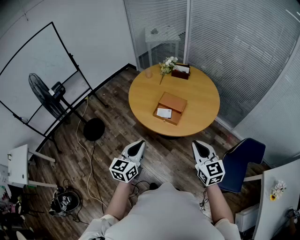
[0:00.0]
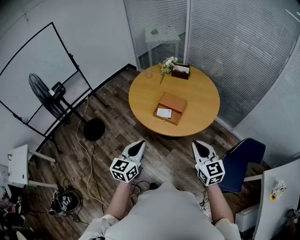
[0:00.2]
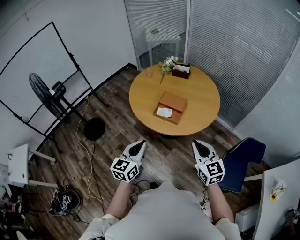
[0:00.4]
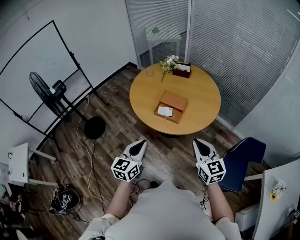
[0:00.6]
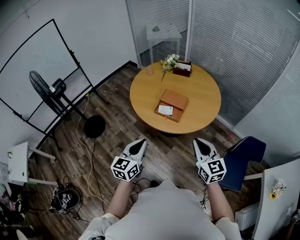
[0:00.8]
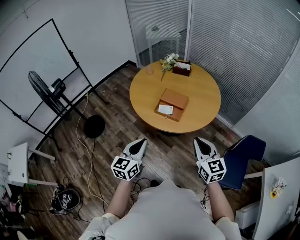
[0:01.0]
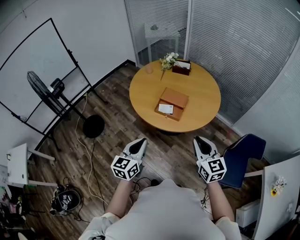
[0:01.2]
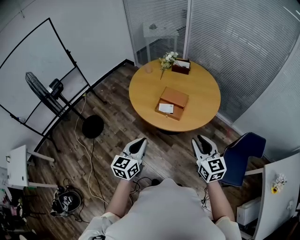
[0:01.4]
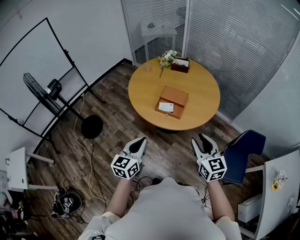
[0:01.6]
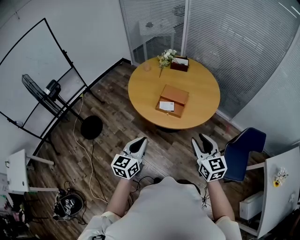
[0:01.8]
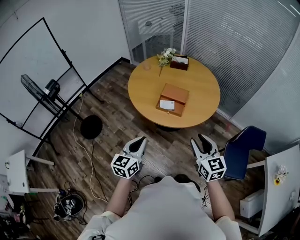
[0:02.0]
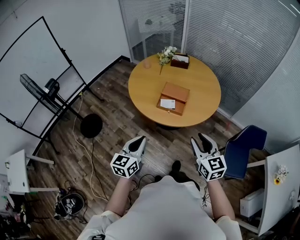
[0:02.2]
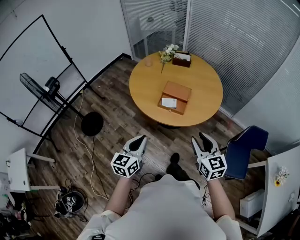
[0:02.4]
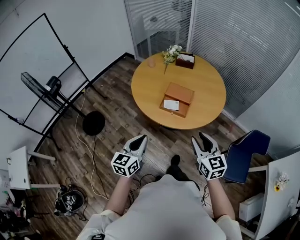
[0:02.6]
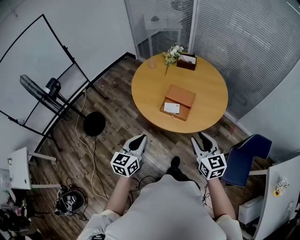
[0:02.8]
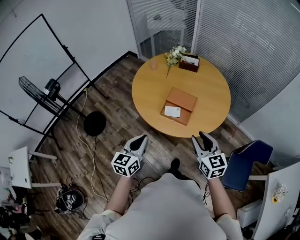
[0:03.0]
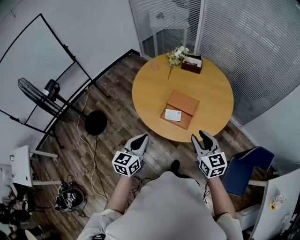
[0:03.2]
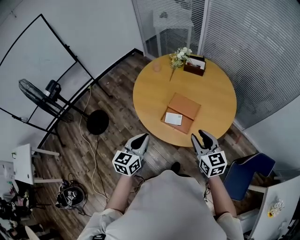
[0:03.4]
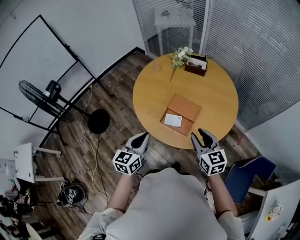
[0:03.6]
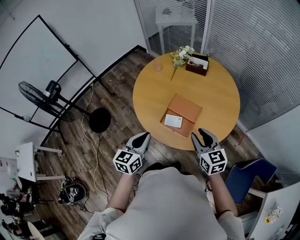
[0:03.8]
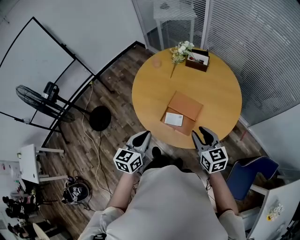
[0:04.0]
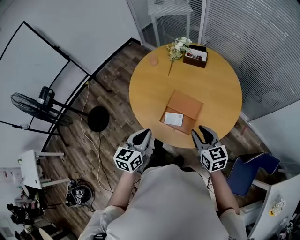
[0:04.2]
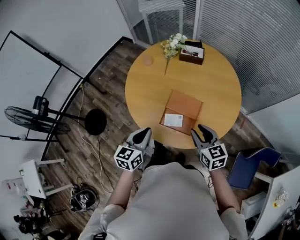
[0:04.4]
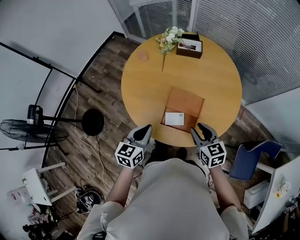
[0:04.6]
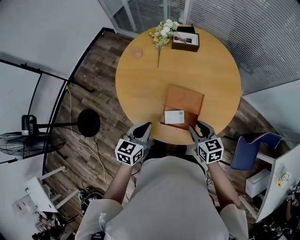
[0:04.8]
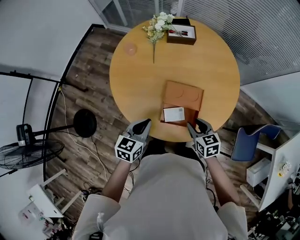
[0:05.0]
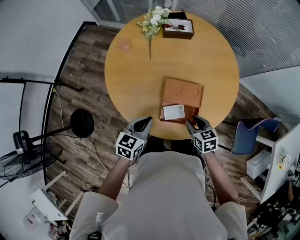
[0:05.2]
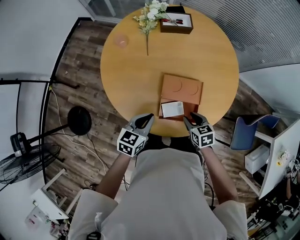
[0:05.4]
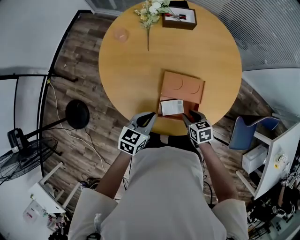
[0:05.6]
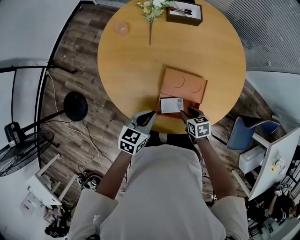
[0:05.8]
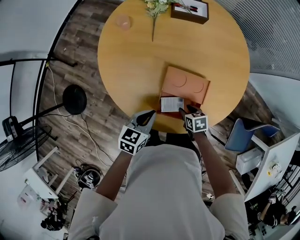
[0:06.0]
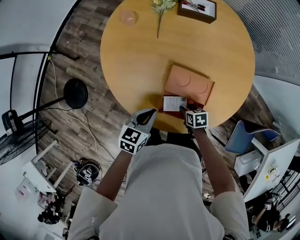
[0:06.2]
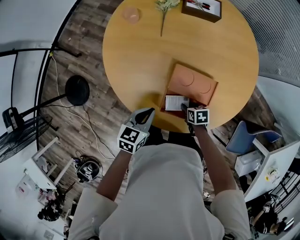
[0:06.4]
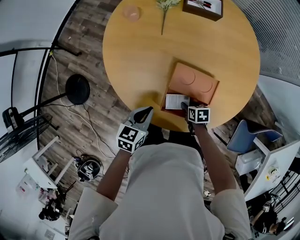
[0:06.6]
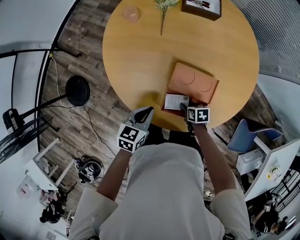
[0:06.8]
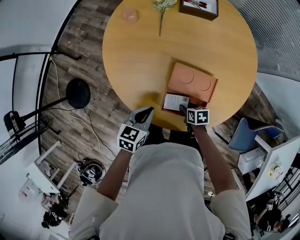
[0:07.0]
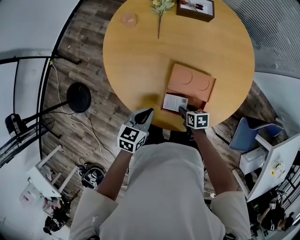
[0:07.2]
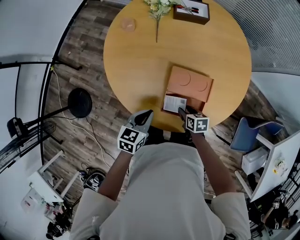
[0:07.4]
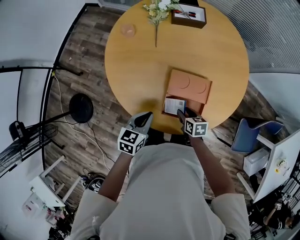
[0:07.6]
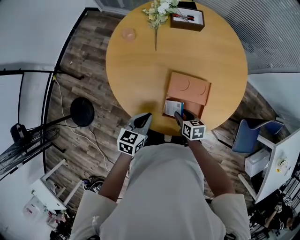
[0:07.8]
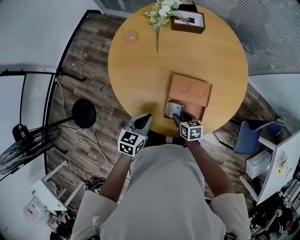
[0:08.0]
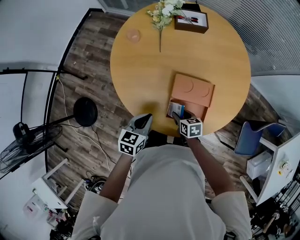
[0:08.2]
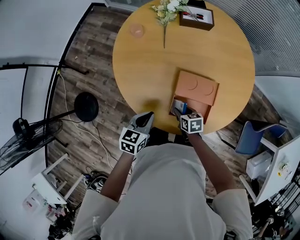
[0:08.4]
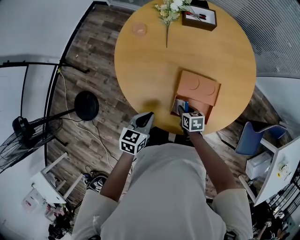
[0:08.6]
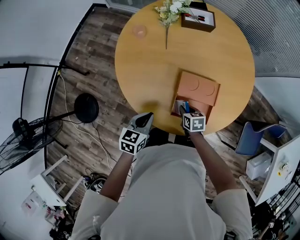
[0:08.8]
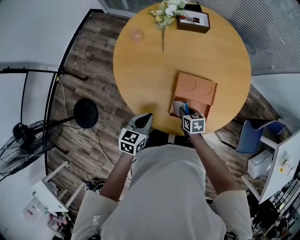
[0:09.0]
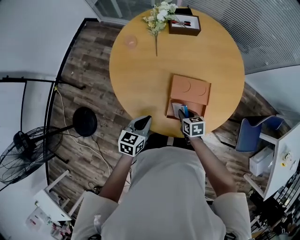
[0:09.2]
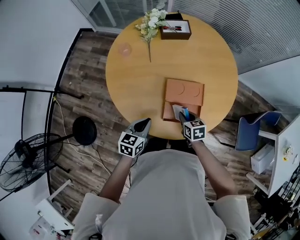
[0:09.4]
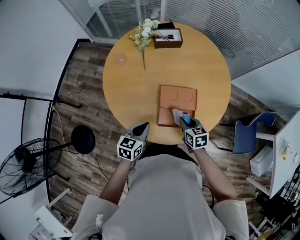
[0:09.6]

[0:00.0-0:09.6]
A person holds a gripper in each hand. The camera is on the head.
0:00.0 to 0:01.6: The left gripper shifts by approximately 5 cm. The right gripper opens.
0:01.6 to 0:03.2: The two grippers go roughly 20 cm forward.
0:03.2 to 0:04.8: The grippers both shift forward and downward by approximately 30 cm. The left gripper rotates some 20 degrees; the right gripper turns by about 20 degrees.
0:04.8 to 0:06.4: The left gripper goes approximately 15 cm downward; the right gripper is displaced downward by about 30 cm, and turns by some 40 degrees.
0:06.4 to 0:08.0: The left gripper changes place by about 5 cm. The right gripper goes roughly 10 cm upward and to the left.
0:08.0 to 0:09.6: The right gripper heads upward, covering about 10 cm, and closes its fingers.

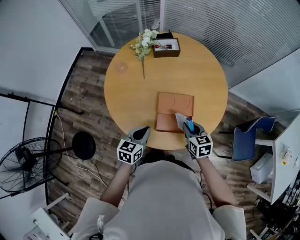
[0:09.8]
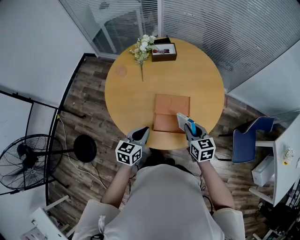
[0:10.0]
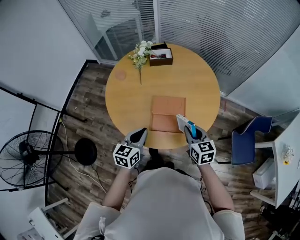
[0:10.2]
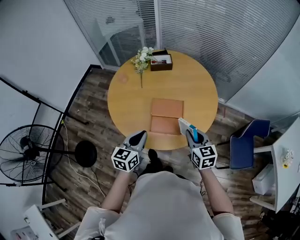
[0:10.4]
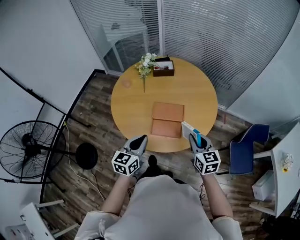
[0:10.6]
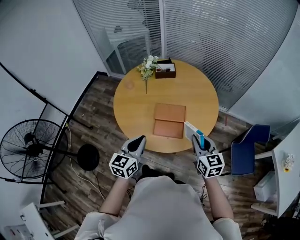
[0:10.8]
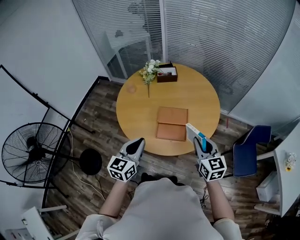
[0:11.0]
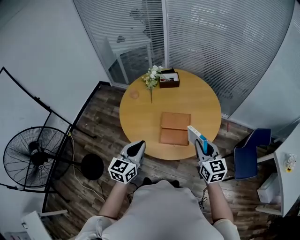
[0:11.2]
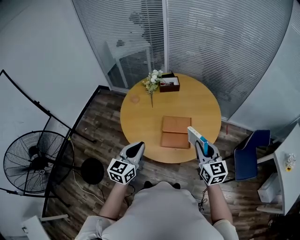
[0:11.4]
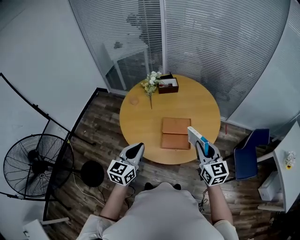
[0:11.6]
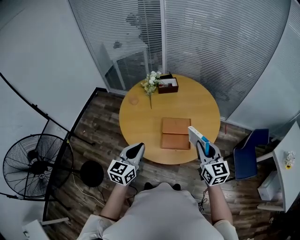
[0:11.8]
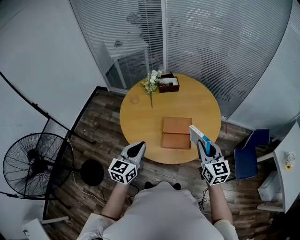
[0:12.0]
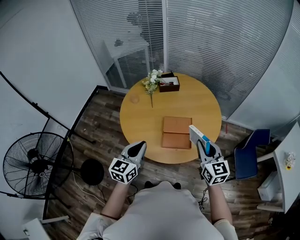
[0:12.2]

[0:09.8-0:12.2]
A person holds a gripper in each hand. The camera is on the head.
0:09.8 to 0:11.0: The right gripper is displaced upward, backward and to the right by approximately 30 cm, and rotates approximately 20 degrees; the left gripper shifts some 25 cm upward and backward, and turns by about 20 degrees.
0:11.0 to 0:12.2: The left gripper travels to the left by some 5 cm; the right gripper shifts by some 5 cm.

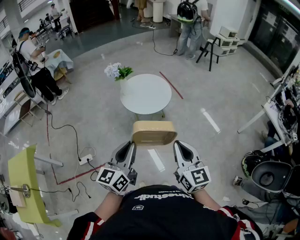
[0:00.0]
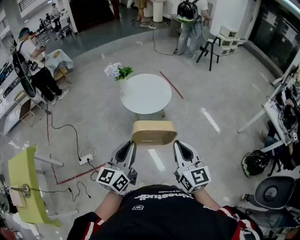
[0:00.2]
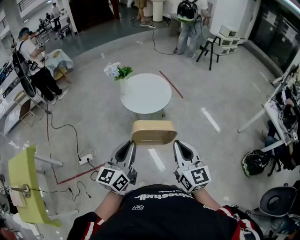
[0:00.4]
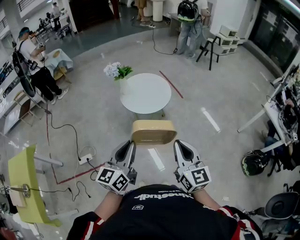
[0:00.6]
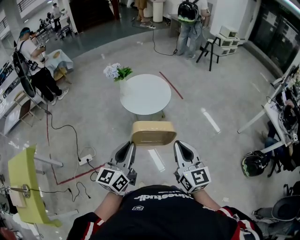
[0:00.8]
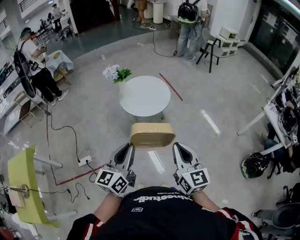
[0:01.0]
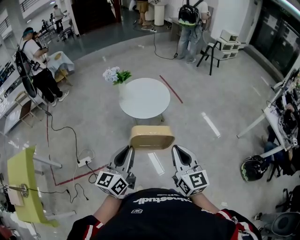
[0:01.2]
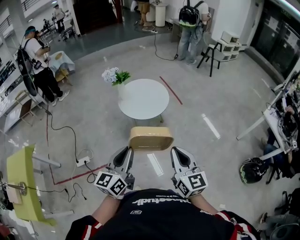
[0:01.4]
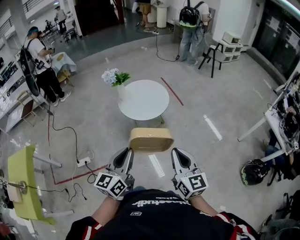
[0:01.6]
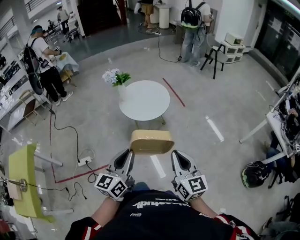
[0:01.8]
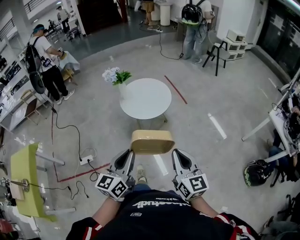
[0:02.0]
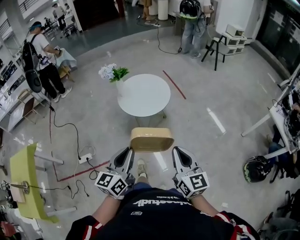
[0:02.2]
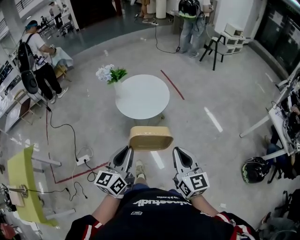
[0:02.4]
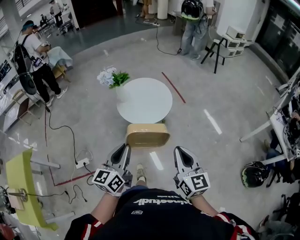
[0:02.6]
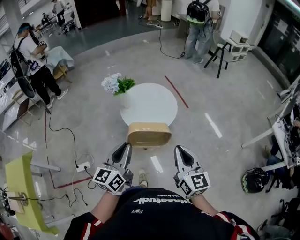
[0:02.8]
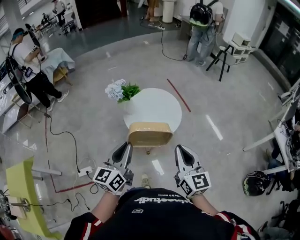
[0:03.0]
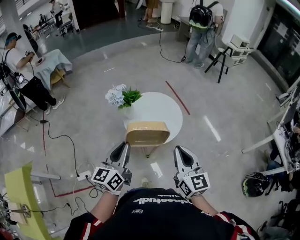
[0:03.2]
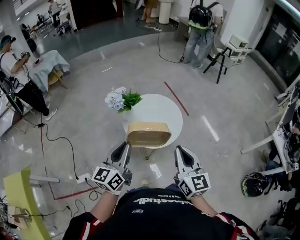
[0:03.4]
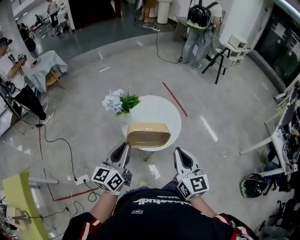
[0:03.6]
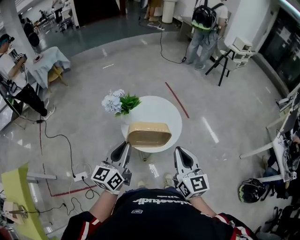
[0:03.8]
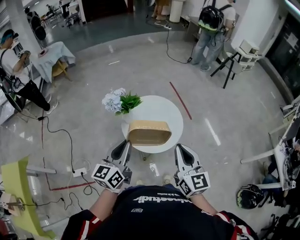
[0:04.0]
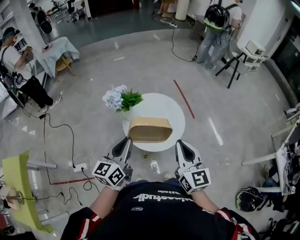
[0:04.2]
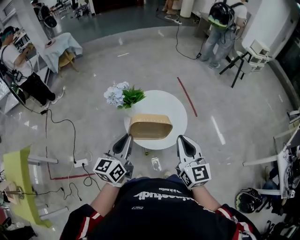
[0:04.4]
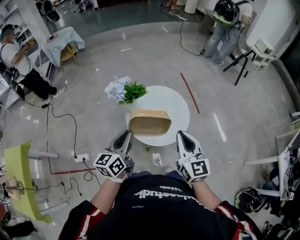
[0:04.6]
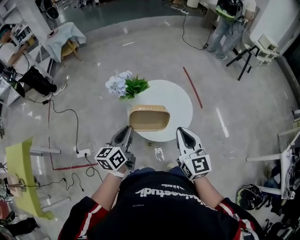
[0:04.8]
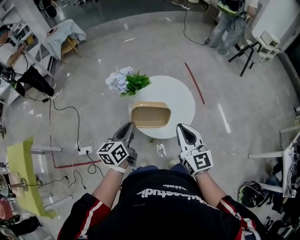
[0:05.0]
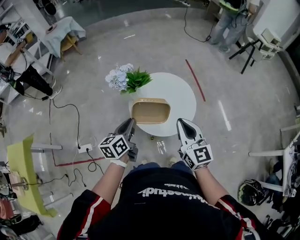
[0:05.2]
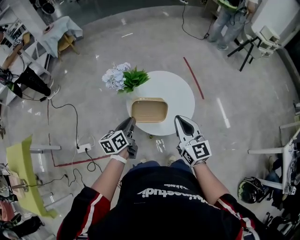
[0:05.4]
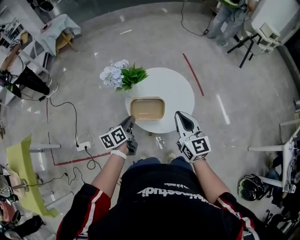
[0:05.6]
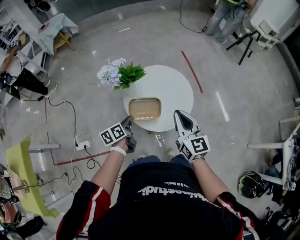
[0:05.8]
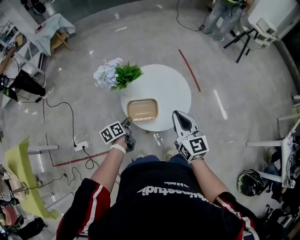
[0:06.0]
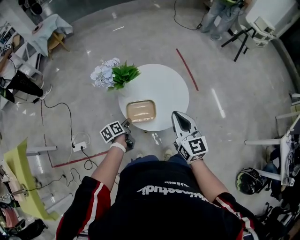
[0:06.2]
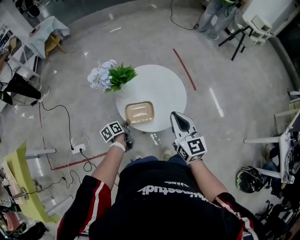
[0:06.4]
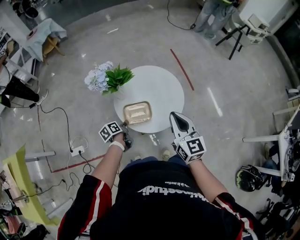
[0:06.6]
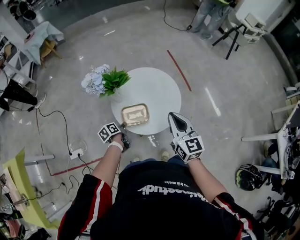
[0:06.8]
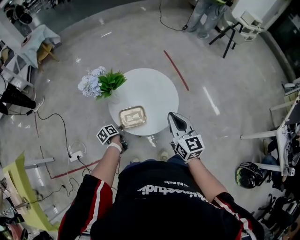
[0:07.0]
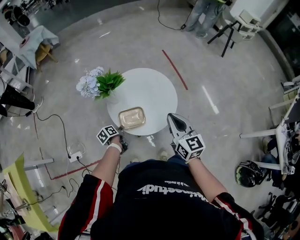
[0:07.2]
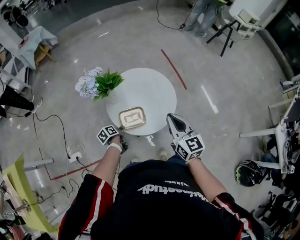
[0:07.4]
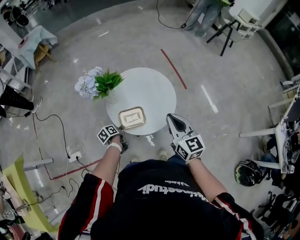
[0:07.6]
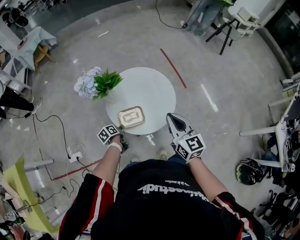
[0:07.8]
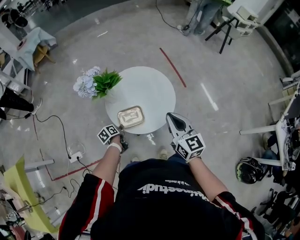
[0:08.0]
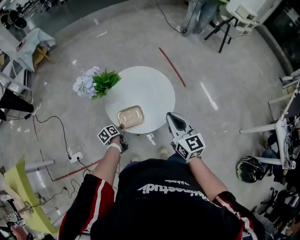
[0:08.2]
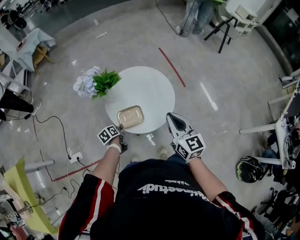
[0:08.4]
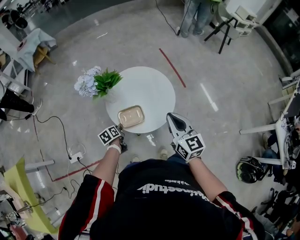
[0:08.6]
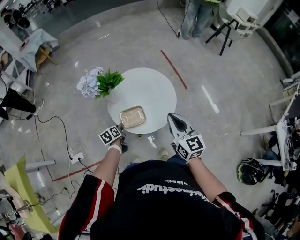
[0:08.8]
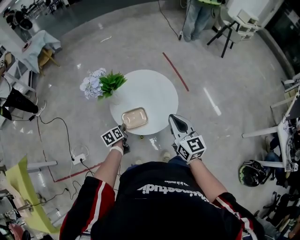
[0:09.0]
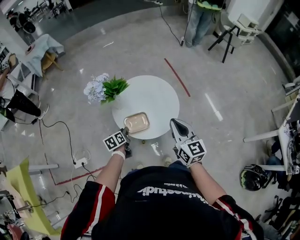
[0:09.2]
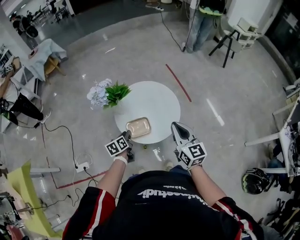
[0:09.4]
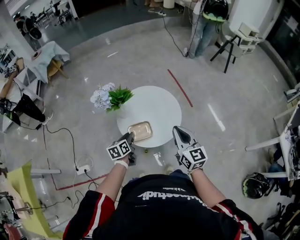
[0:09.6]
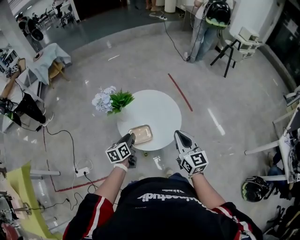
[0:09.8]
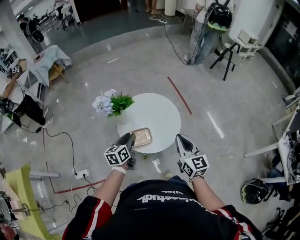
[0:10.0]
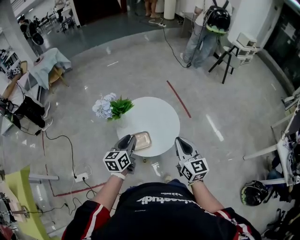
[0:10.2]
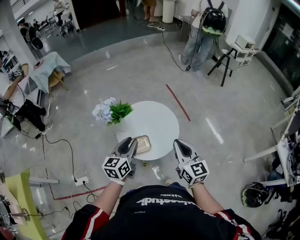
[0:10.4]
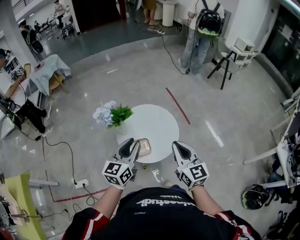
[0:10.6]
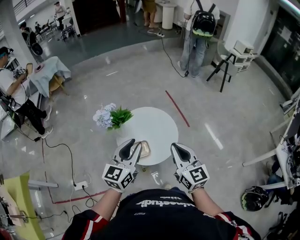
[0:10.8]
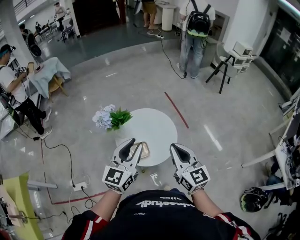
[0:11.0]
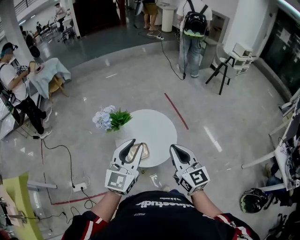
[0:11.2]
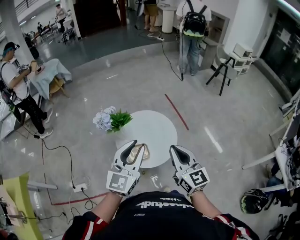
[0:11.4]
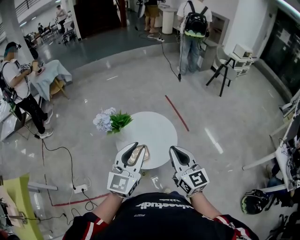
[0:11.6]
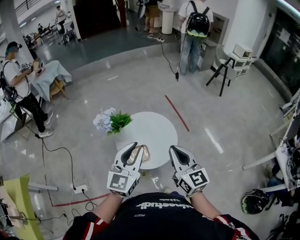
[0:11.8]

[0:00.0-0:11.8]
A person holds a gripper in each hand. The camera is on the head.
0:00.0 to 0:01.4: The grippers move only a little.
0:01.4 to 0:03.0: Both grippers move forward, roughly 25 cm.
0:03.0 to 0:04.4: The two grippers go some 15 cm forward.
0:04.4 to 0:06.0: The right gripper is displaced downward and forward by approximately 15 cm; the left gripper shifts about 25 cm downward, and rotates some 50 degrees.
0:06.0 to 0:07.4: The right gripper shifts by approximately 5 cm, while the left gripper shifts some 10 cm downward.
0:07.4 to 0:08.8: The left gripper changes its angle by approximately 20 degrees.
0:08.8 to 0:10.4: The left gripper moves upward, some 30 cm, and angles its fingers upward, by approximately 30 degrees, while the right gripper travels upward by about 5 cm.
0:10.4 to 0:11.8: The right gripper moves upward, about 5 cm. Meanwhile the left gripper heads upward, covering about 15 cm, and swivels some 30 degrees.
